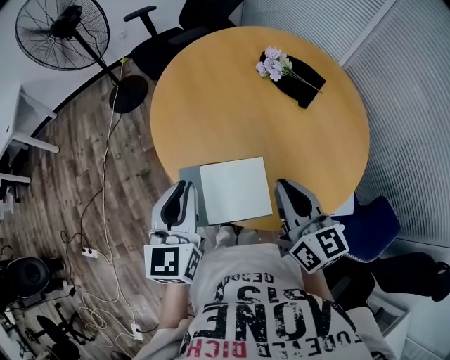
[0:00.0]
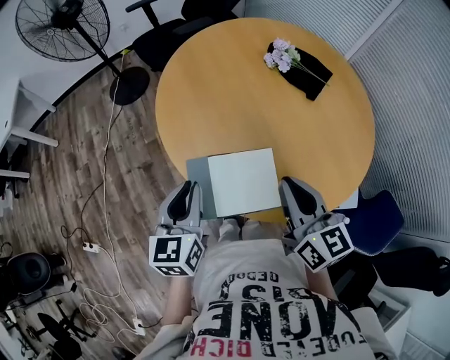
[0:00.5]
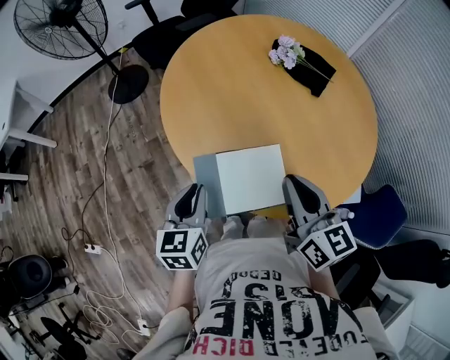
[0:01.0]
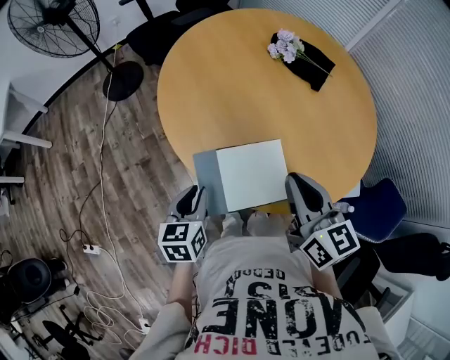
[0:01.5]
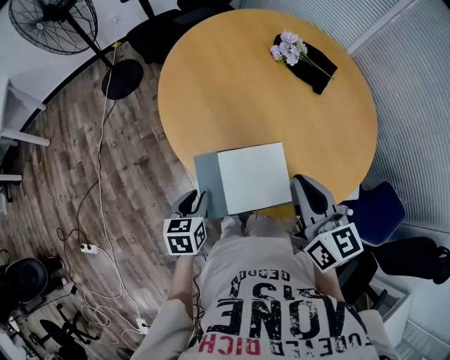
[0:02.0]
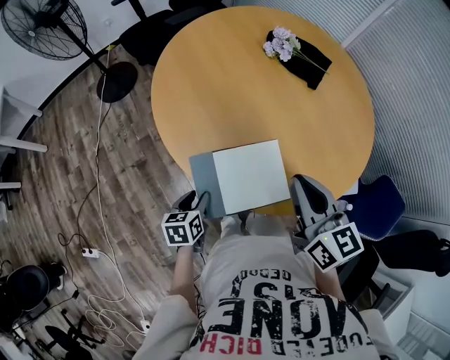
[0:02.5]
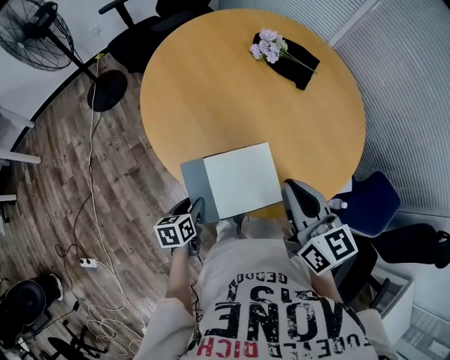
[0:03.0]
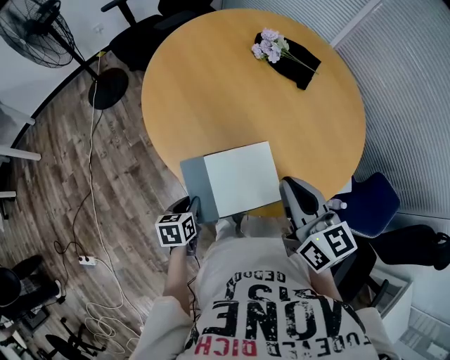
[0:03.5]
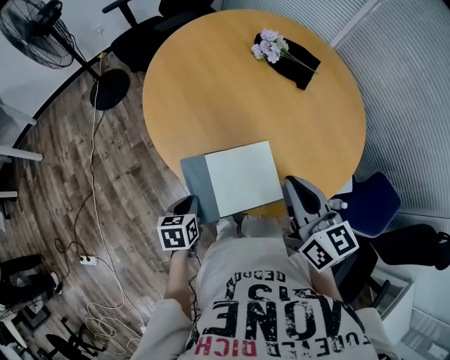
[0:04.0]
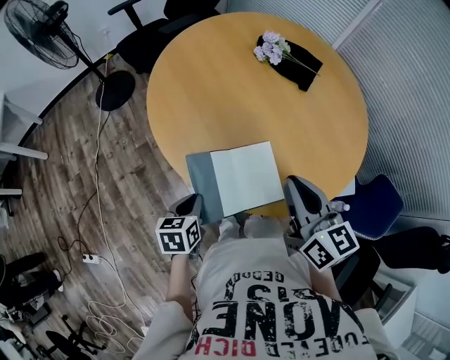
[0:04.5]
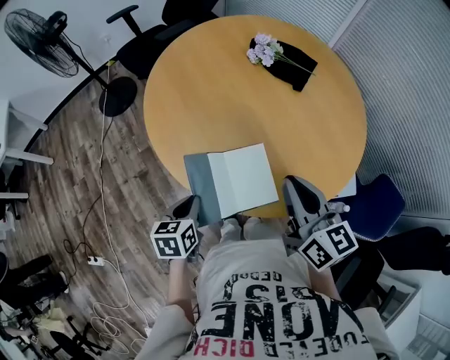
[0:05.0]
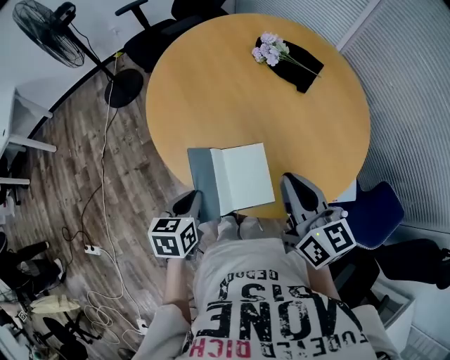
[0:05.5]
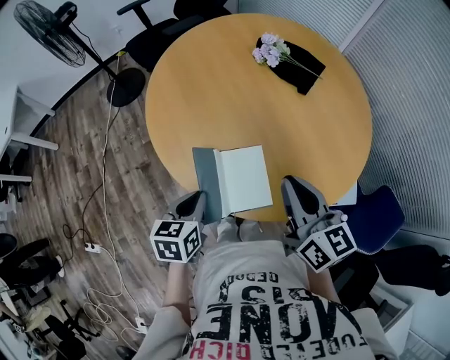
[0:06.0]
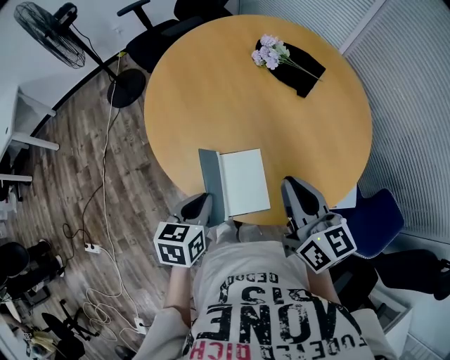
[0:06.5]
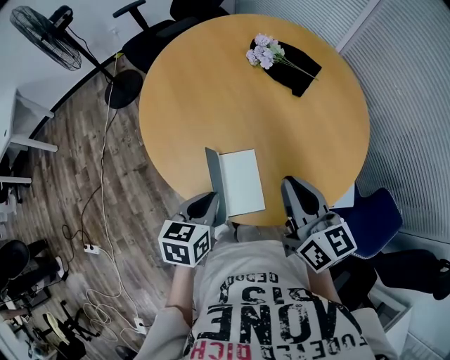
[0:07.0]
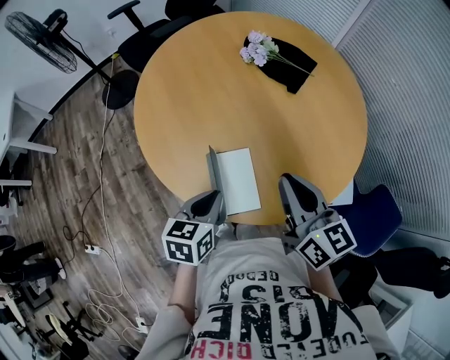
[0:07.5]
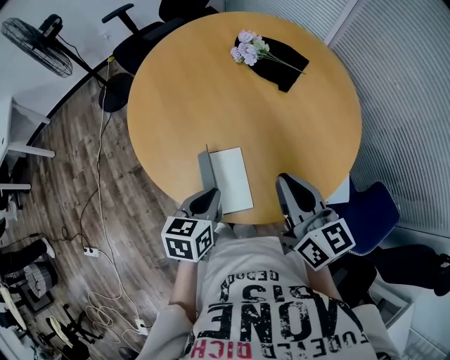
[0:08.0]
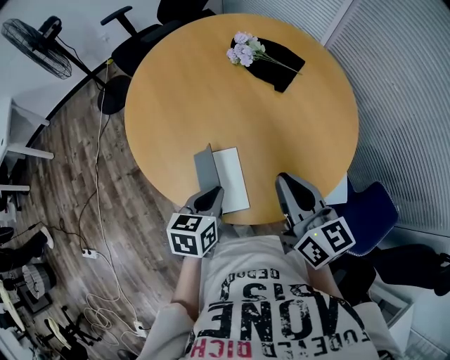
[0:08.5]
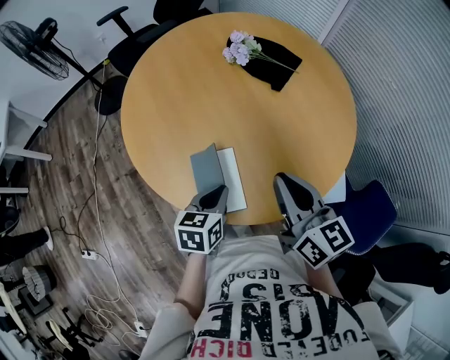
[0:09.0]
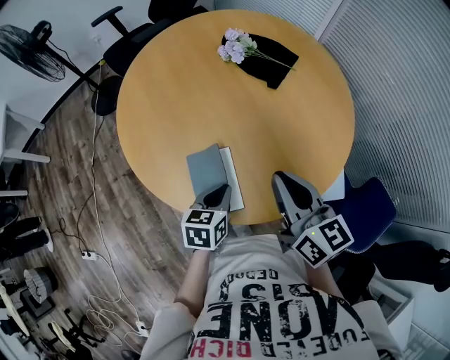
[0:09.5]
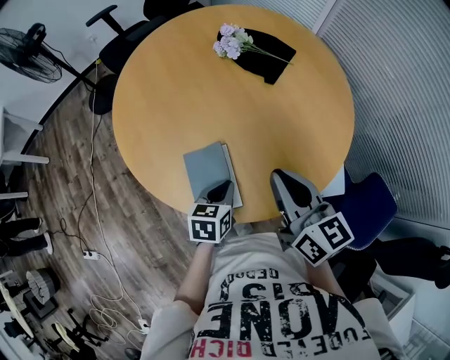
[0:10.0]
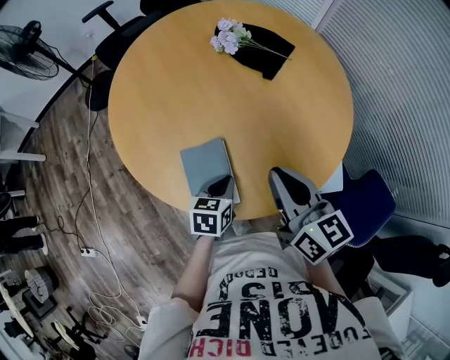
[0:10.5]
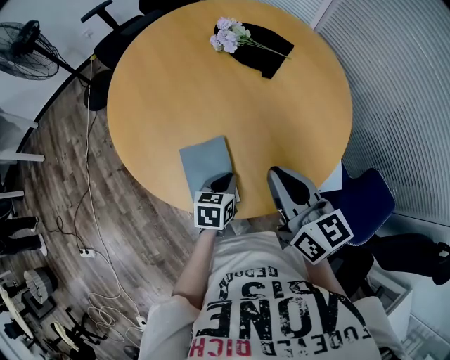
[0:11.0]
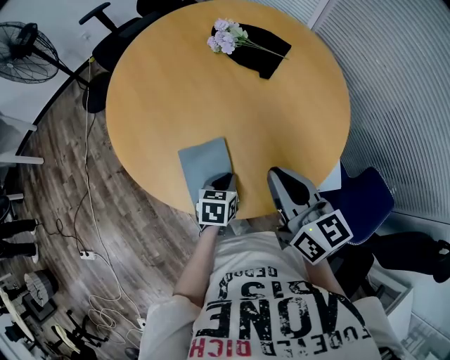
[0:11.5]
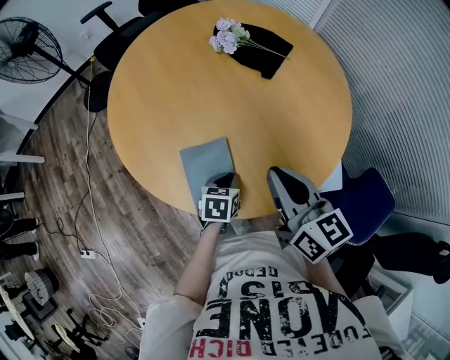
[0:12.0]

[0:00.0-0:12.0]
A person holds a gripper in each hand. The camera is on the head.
0:00.0 to 0:02.0: The left gripper heads downward, covering approximately 25 cm, and swivels approximately 40 degrees.
0:04.0 to 0:06.0: The right gripper moves to the right, about 5 cm, while the left gripper moves upward and to the right, approximately 15 cm.
0:06.0 to 0:08.0: The right gripper heads to the right, covering approximately 5 cm. The left gripper is displaced to the right by some 10 cm.
0:08.0 to 0:10.0: The left gripper heads to the right and downward, covering roughly 10 cm.
0:10.0 to 0:12.0: The left gripper is displaced downward by about 5 cm.

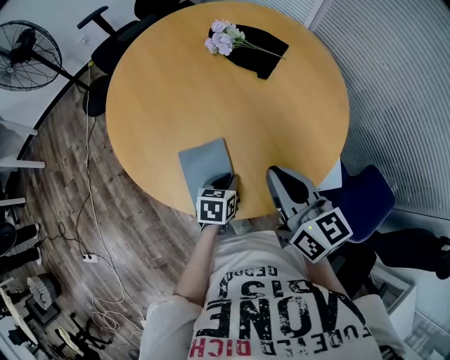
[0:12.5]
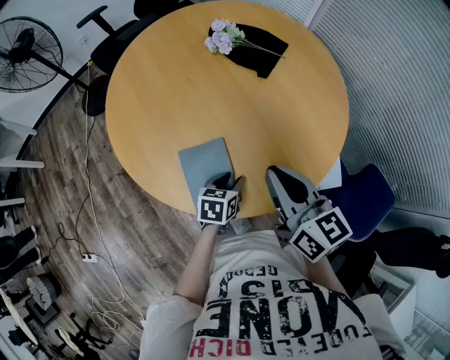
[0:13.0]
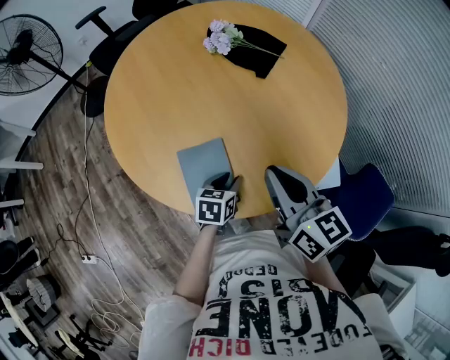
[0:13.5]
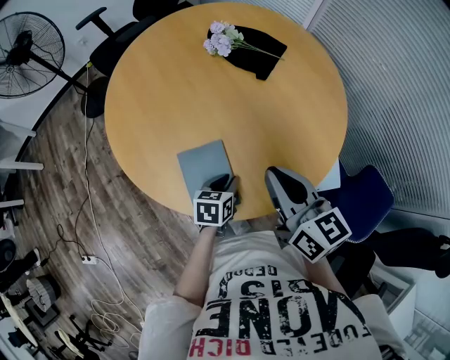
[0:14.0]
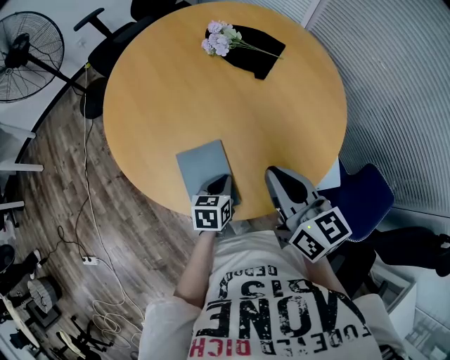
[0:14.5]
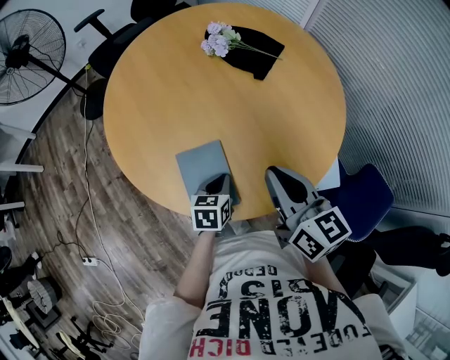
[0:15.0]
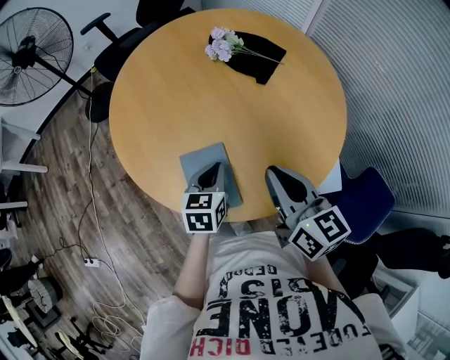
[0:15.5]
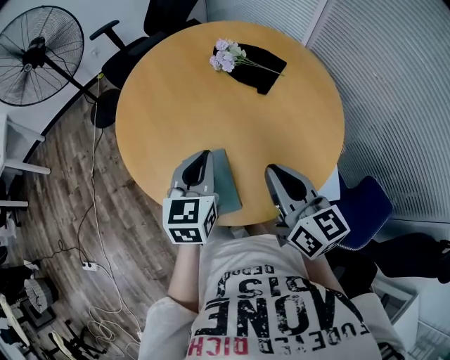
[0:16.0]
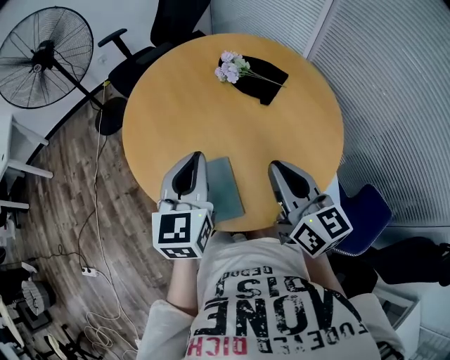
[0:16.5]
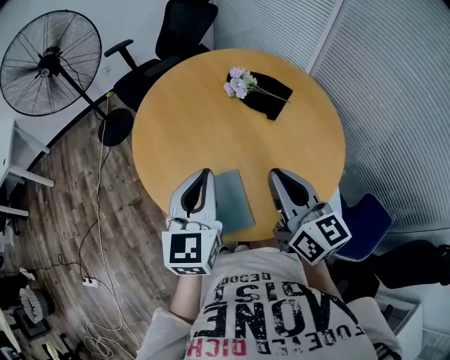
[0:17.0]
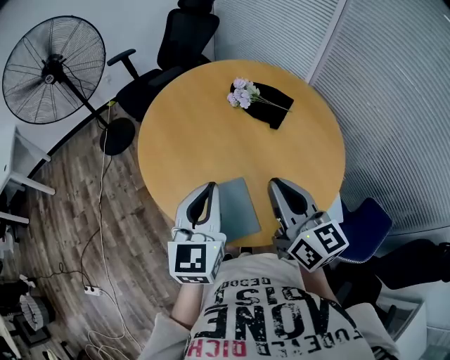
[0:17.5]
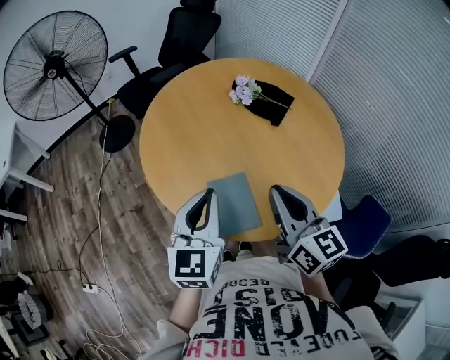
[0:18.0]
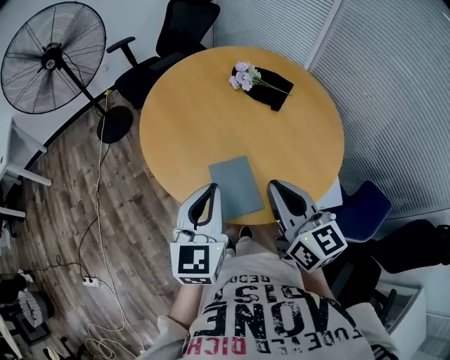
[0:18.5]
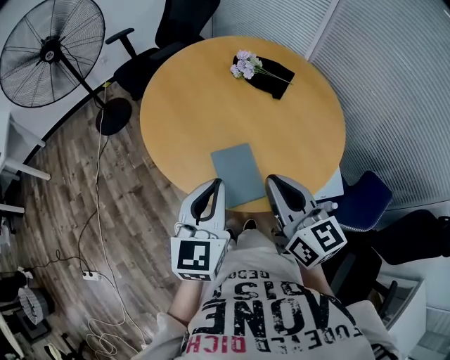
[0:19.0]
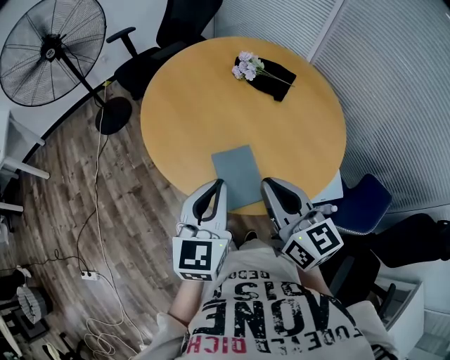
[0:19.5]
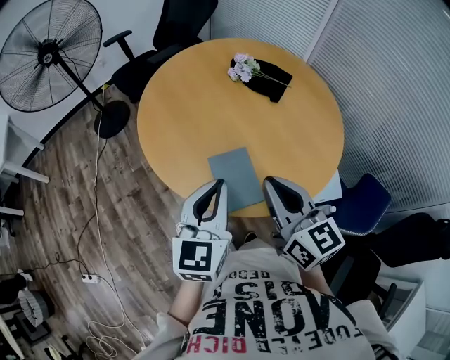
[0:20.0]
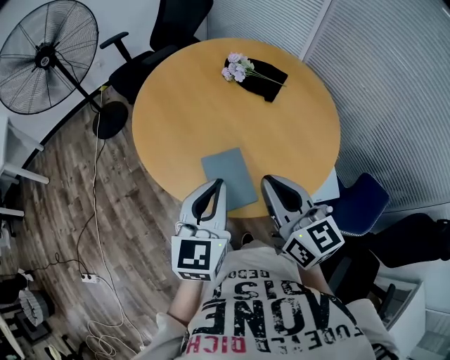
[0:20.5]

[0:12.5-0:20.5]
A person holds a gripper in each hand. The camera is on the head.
0:12.5 to 0:14.5: The left gripper opens, then closes once more.
0:14.5 to 0:16.5: The right gripper travels upward by approximately 5 cm. The left gripper moves upward, some 30 cm, and tips its fingers upward by about 30 degrees.
0:16.5 to 0:18.5: The left gripper heads backward and to the left, covering roughly 10 cm, while the right gripper travels to the left and backward by roughly 10 cm.
0:18.5 to 0:20.5: There are only small adjustments of the grippers.

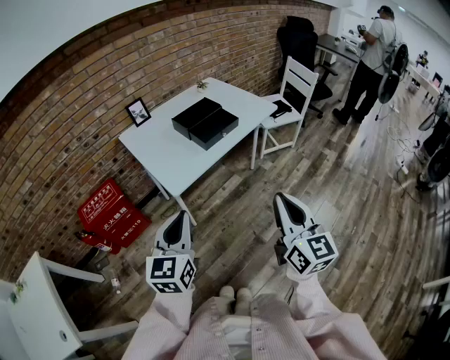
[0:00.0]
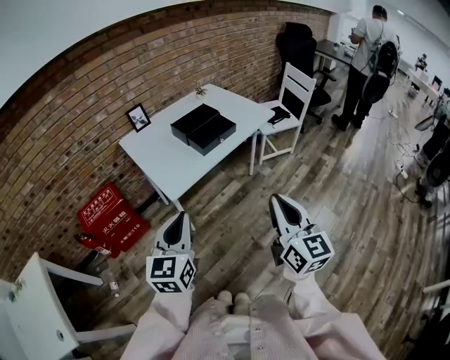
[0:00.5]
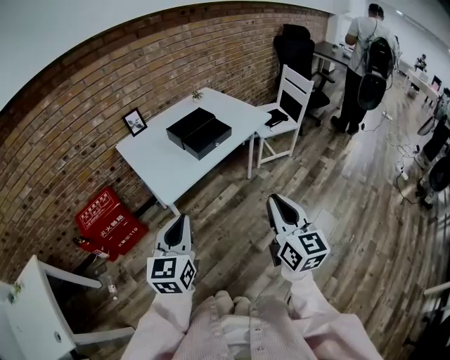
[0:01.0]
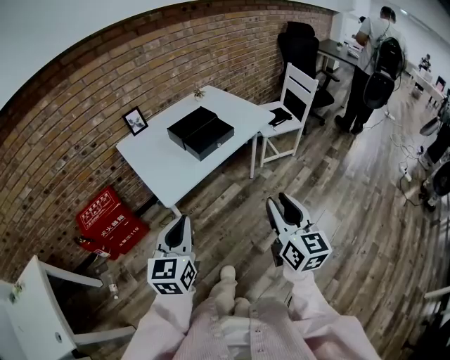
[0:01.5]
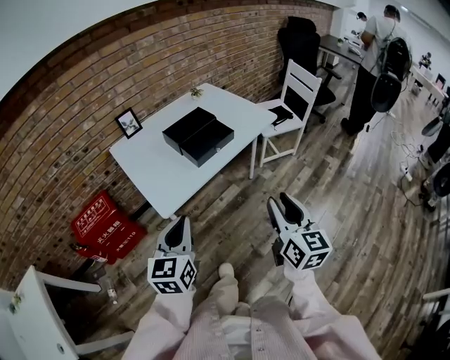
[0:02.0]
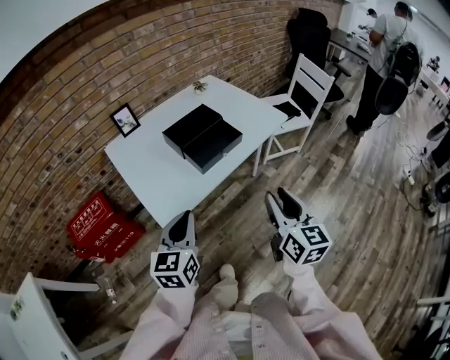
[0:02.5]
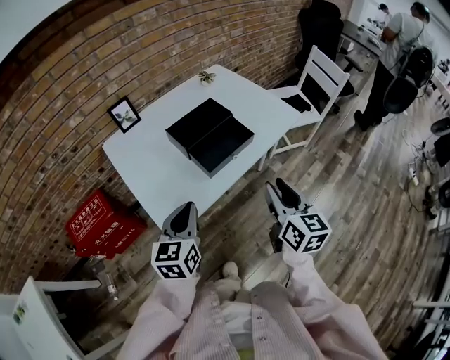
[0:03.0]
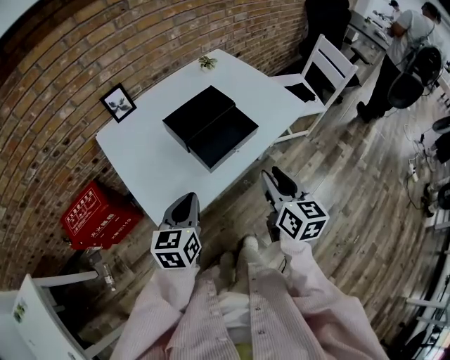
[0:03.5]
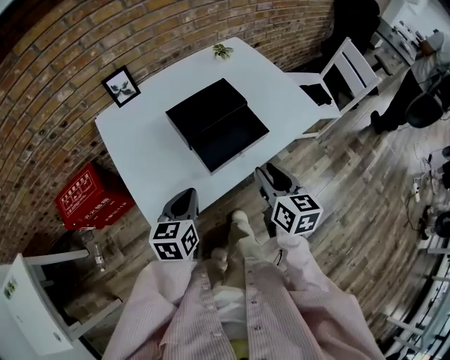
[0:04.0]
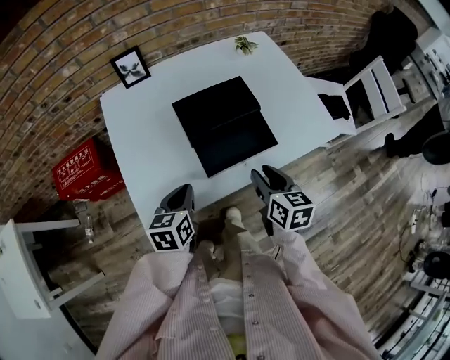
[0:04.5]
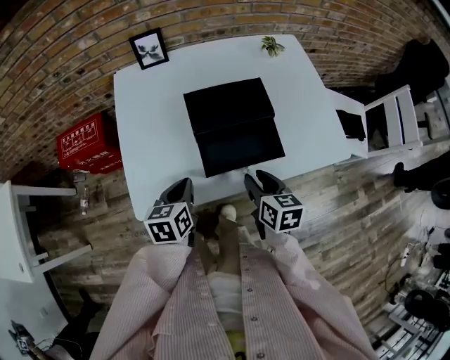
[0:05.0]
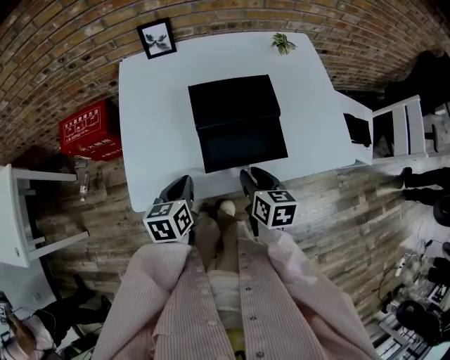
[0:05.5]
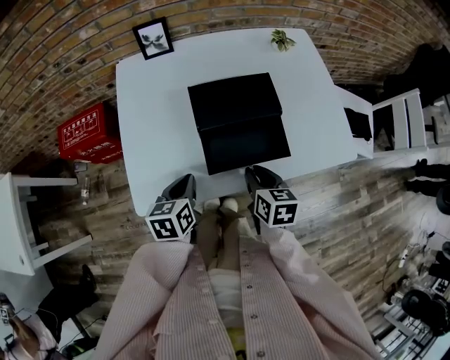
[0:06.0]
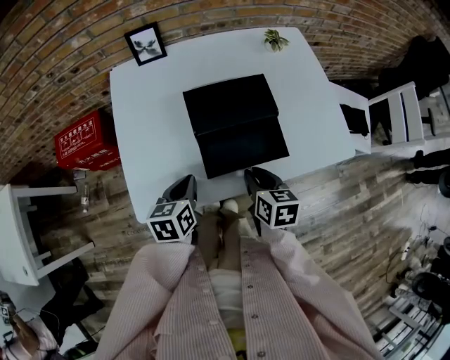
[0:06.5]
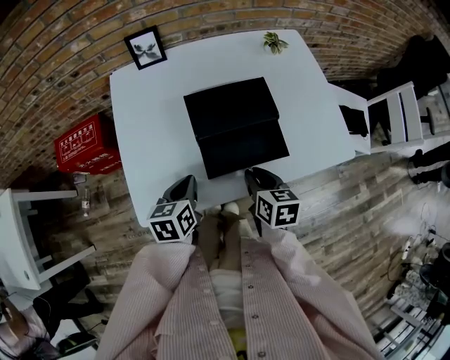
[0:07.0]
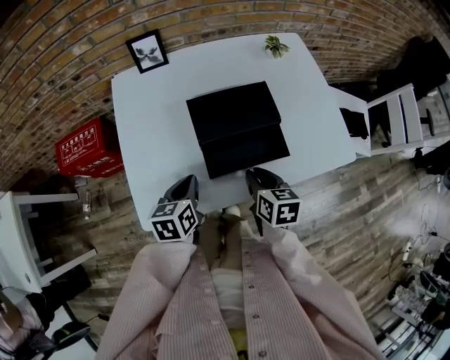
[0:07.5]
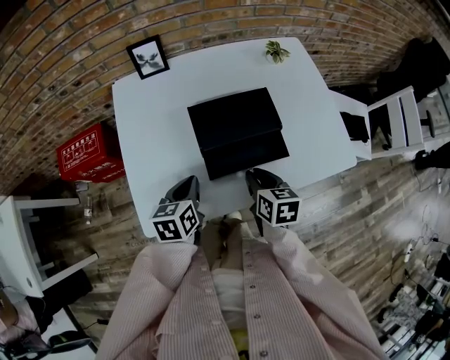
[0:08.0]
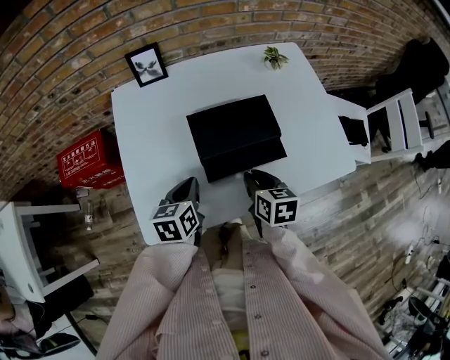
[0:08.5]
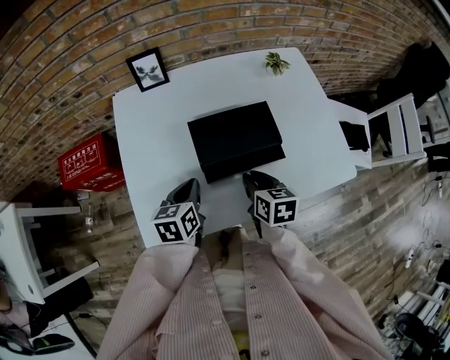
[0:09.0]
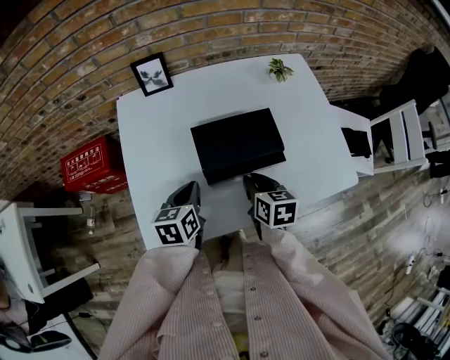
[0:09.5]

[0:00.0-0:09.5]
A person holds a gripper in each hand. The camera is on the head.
0:00.0 to 0:02.0: The grippers both shift forward by about 10 cm. The right gripper opens its fingers.
0:02.0 to 0:04.0: The right gripper goes approximately 30 cm forward, and swivels approximately 20 degrees. The left gripper goes approximately 30 cm forward and downward, and turns by approximately 20 degrees.
0:04.0 to 0:05.5: The left gripper travels downward by approximately 5 cm, and changes its angle by roughly 30 degrees. The right gripper is displaced downward by some 10 cm, and turns by roughly 30 degrees.
0:05.5 to 0:07.5: The grippers make only small movements.
0:07.5 to 0:09.5: The two grippers go about 5 cm forward.
